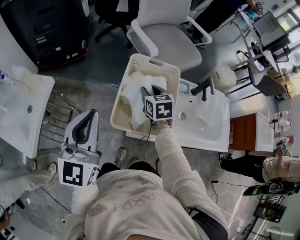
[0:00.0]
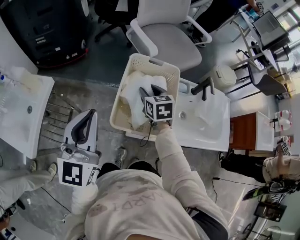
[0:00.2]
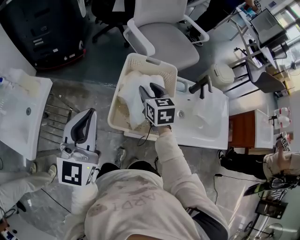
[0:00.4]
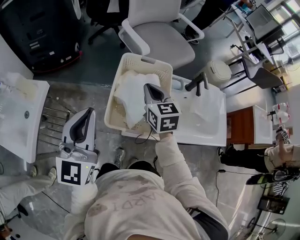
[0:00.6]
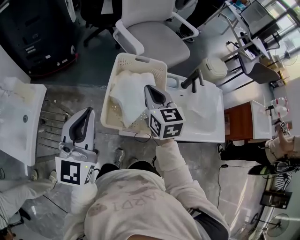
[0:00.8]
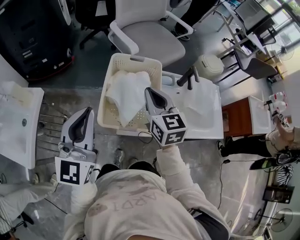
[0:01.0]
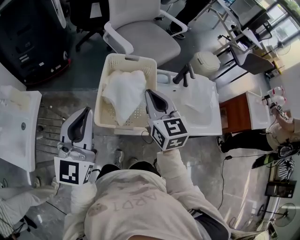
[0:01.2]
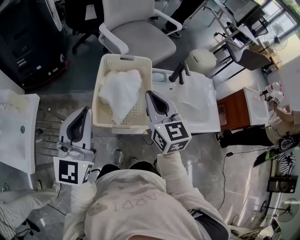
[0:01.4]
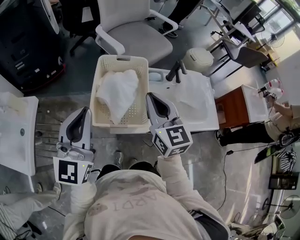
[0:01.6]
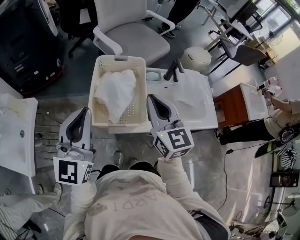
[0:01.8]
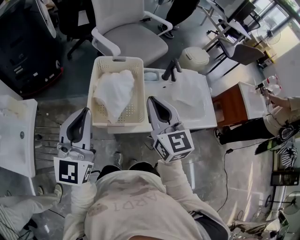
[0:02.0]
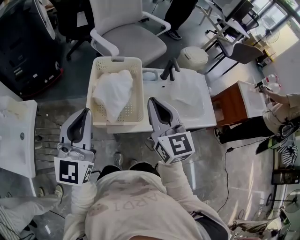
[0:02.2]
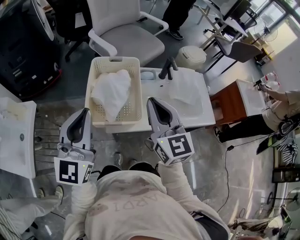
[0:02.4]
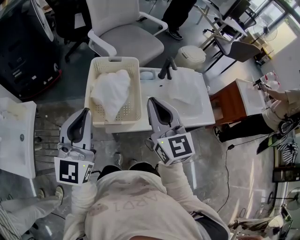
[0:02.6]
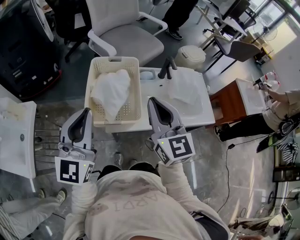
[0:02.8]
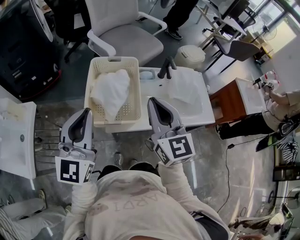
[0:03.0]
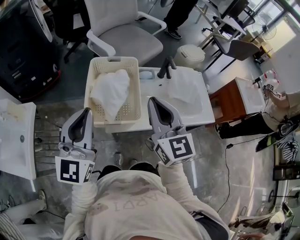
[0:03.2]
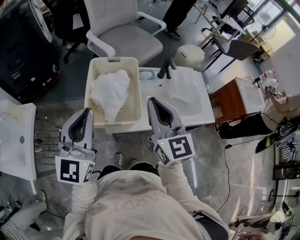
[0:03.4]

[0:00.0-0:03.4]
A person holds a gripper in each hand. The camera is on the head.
0:00.0 to 0:01.6: The left gripper shifts approximately 5 cm to the right. Meanwhile the right gripper goes approximately 25 cm upward, backward and to the right, tilts its fingers some 30 degrees upward, and closes.
0:01.6 to 0:03.4: The right gripper heads backward, covering roughly 5 cm.

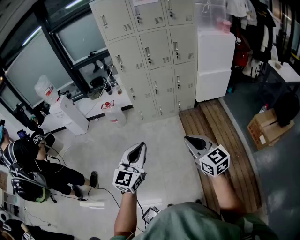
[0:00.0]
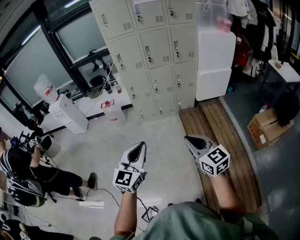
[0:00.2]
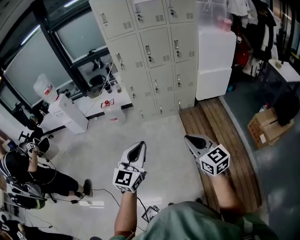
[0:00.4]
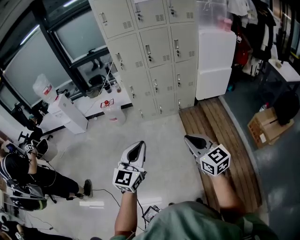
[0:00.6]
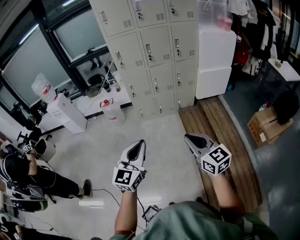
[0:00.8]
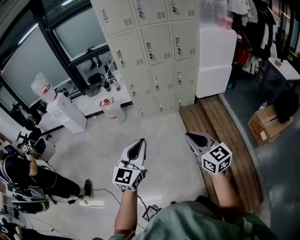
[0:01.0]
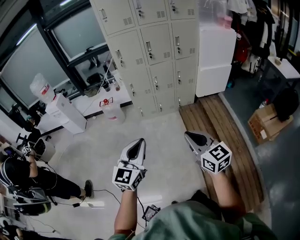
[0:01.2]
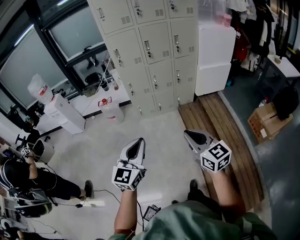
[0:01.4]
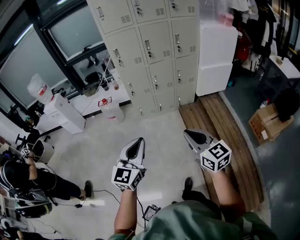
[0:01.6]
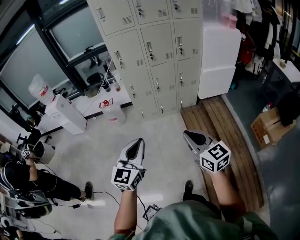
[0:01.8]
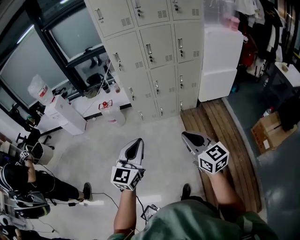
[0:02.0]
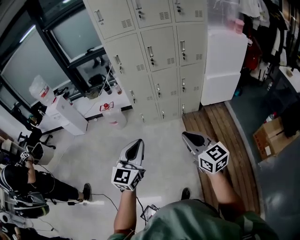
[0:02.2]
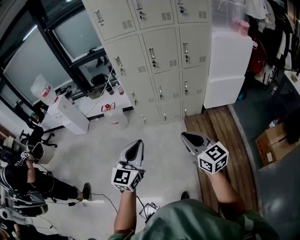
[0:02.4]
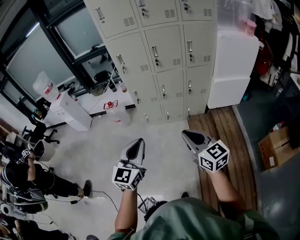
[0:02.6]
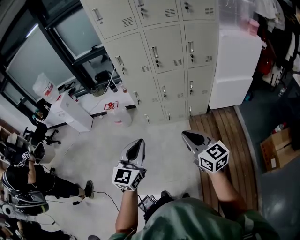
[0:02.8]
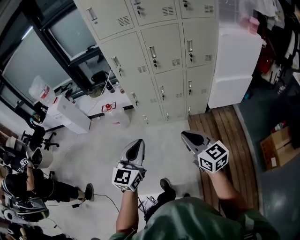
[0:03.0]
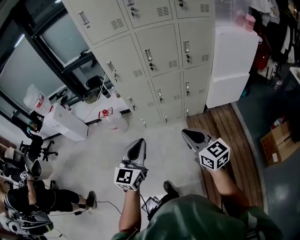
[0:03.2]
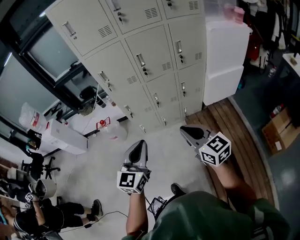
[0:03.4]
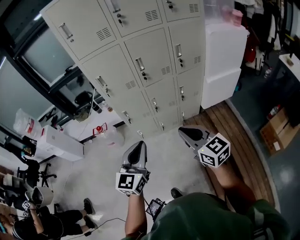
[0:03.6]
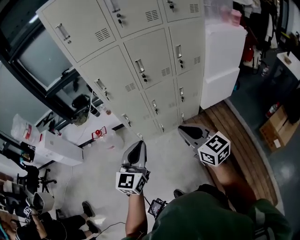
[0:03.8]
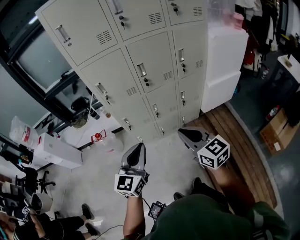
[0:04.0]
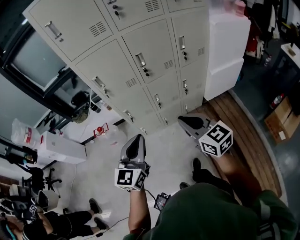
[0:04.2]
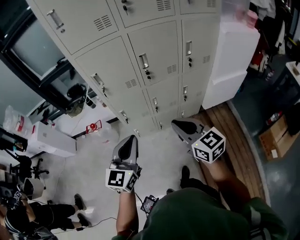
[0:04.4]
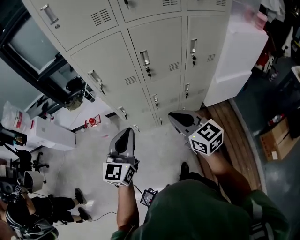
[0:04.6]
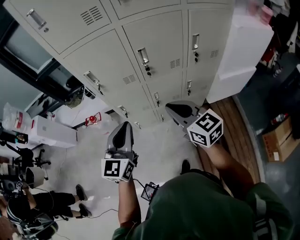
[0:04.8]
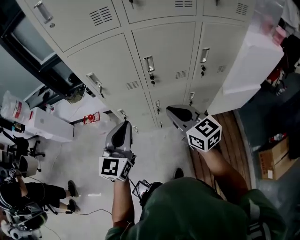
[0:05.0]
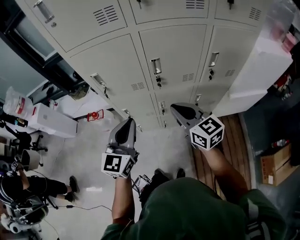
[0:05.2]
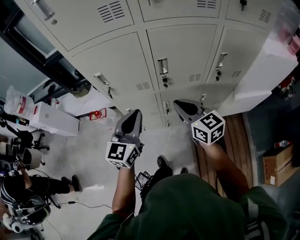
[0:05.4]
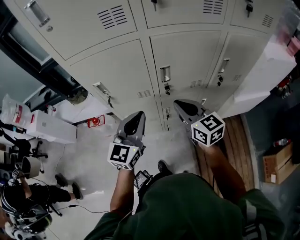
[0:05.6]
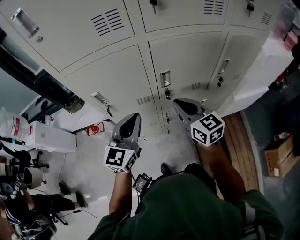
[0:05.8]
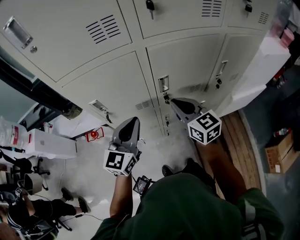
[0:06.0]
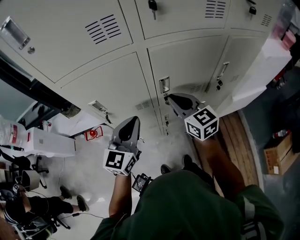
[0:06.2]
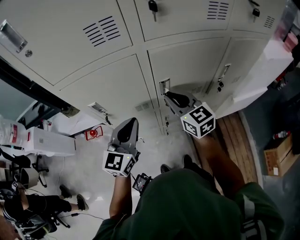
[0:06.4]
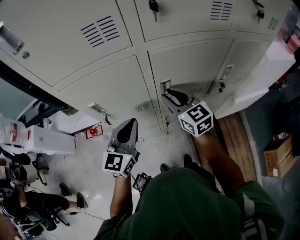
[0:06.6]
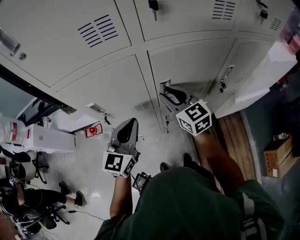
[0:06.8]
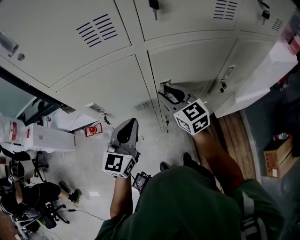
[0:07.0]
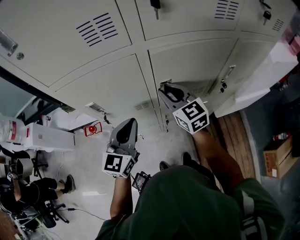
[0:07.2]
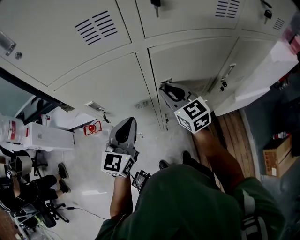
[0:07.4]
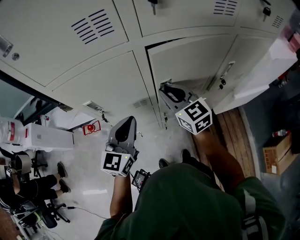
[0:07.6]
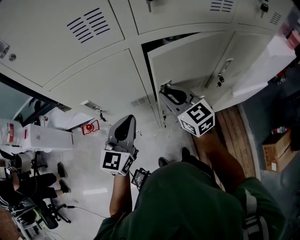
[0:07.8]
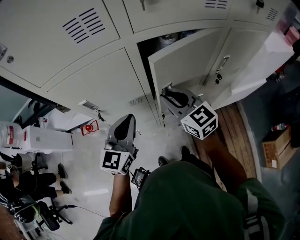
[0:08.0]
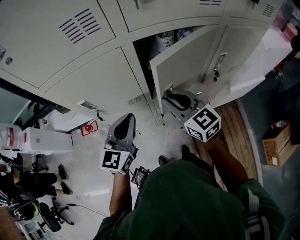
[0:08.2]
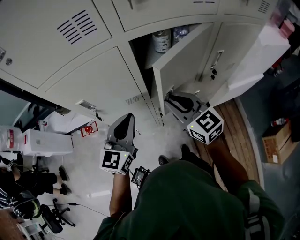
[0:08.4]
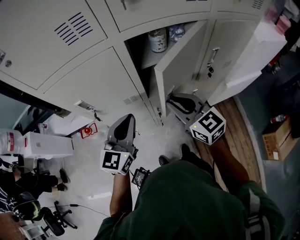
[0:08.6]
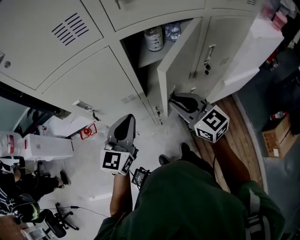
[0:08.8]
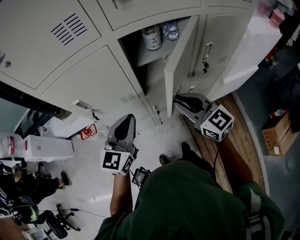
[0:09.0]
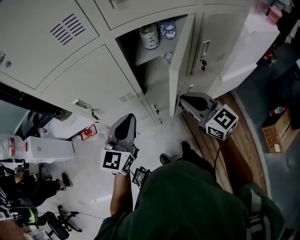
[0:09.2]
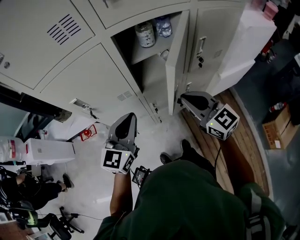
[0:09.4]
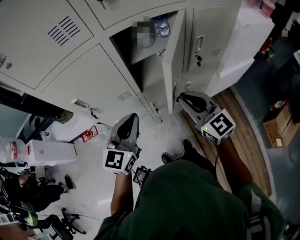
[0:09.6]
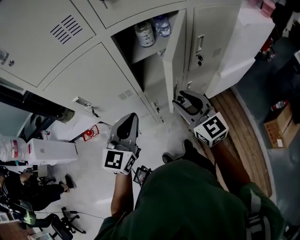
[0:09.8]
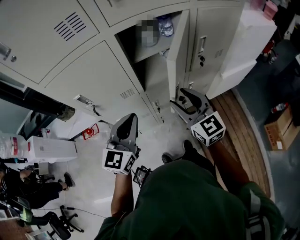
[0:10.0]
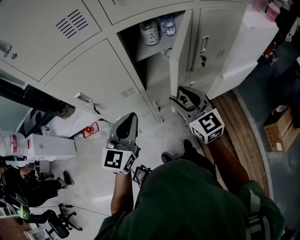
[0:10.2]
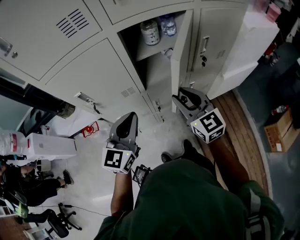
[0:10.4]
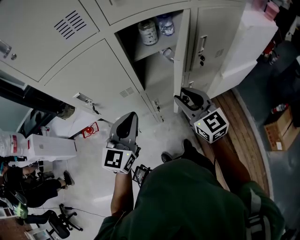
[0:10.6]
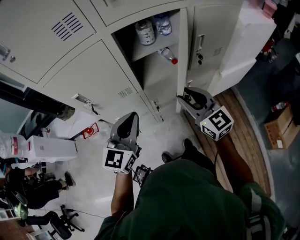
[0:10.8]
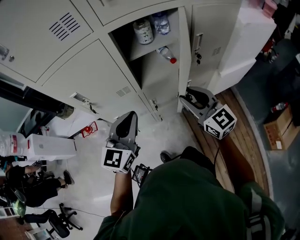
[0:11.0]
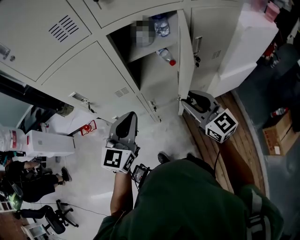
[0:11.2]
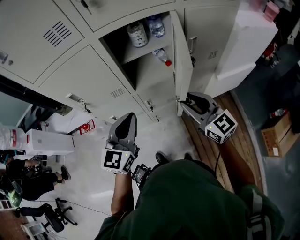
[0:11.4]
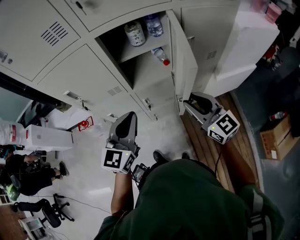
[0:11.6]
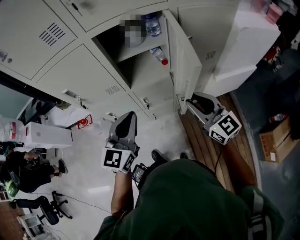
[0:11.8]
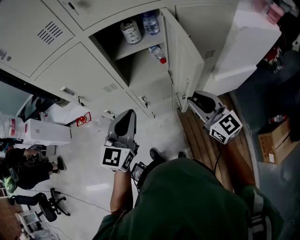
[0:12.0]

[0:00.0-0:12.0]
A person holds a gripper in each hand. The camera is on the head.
0:00.0 to 0:01.6: Both grippers move forward, about 5 cm.
0:01.6 to 0:03.0: Both grippers travel together forward, some 20 cm.
0:03.0 to 0:04.4: The two grippers go about 25 cm forward.
0:04.4 to 0:06.0: Both grippers move forward, about 30 cm.
0:06.0 to 0:07.6: The right gripper heads forward, covering about 5 cm.
0:07.6 to 0:09.0: The left gripper ends up about 5 cm from where it was; the right gripper shifts approximately 15 cm backward and to the right.
0:09.0 to 0:10.4: There are only small adjustments of the grippers.
0:10.4 to 0:12.0: Both grippers move to the right, approximately 15 cm.

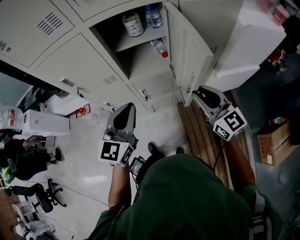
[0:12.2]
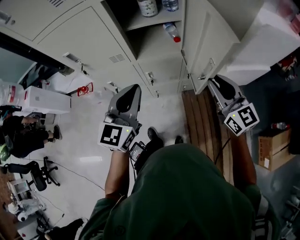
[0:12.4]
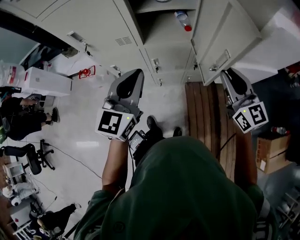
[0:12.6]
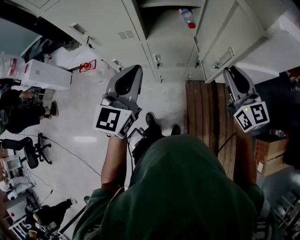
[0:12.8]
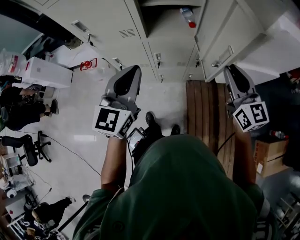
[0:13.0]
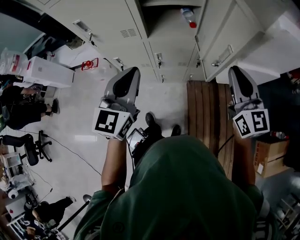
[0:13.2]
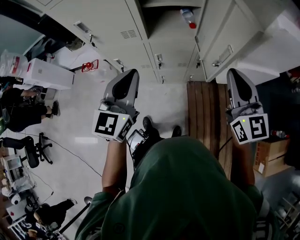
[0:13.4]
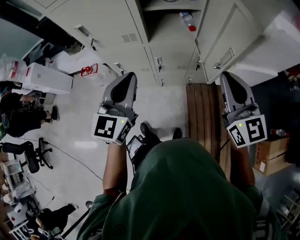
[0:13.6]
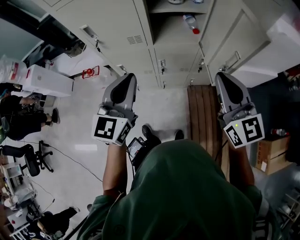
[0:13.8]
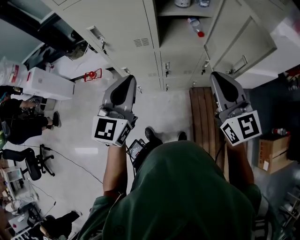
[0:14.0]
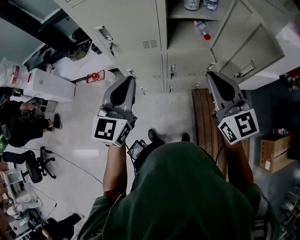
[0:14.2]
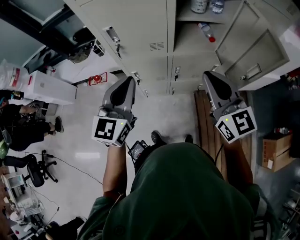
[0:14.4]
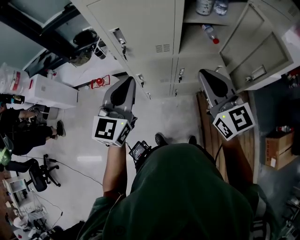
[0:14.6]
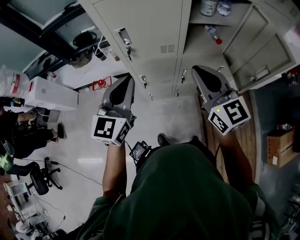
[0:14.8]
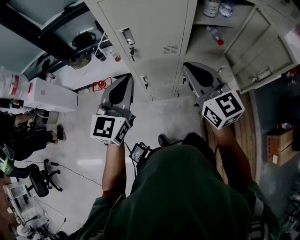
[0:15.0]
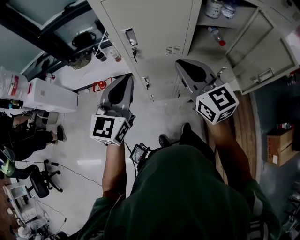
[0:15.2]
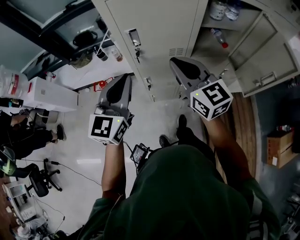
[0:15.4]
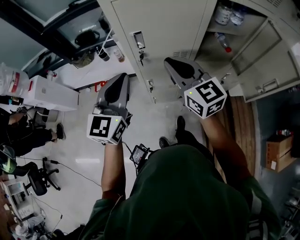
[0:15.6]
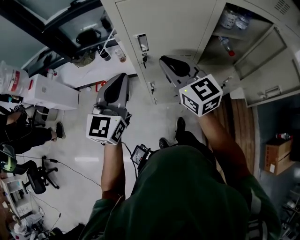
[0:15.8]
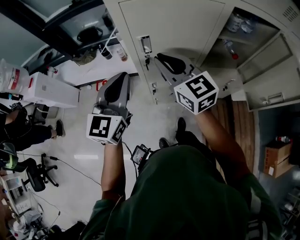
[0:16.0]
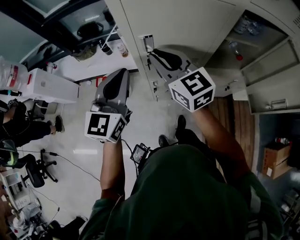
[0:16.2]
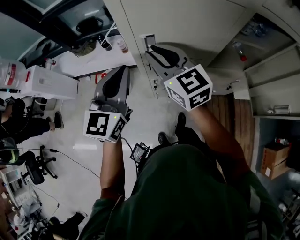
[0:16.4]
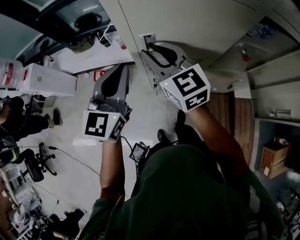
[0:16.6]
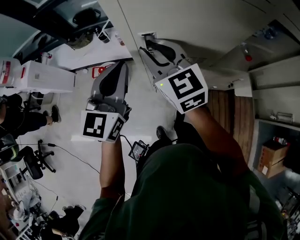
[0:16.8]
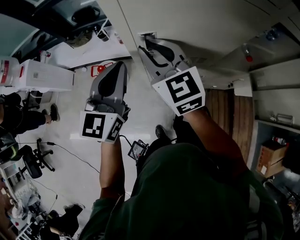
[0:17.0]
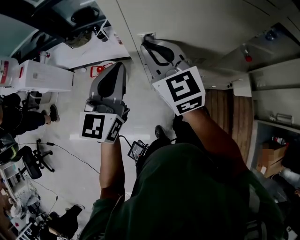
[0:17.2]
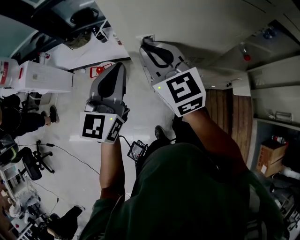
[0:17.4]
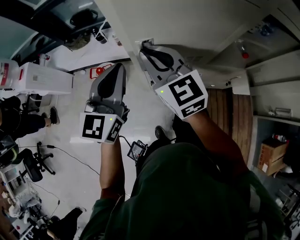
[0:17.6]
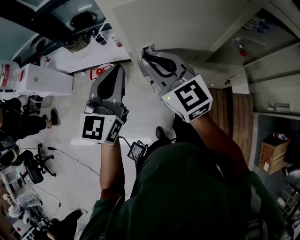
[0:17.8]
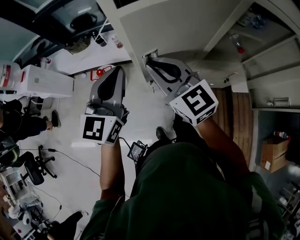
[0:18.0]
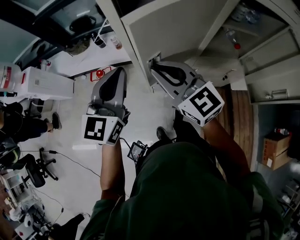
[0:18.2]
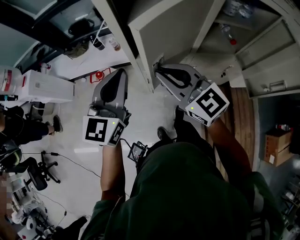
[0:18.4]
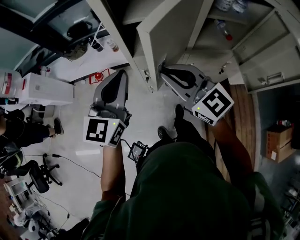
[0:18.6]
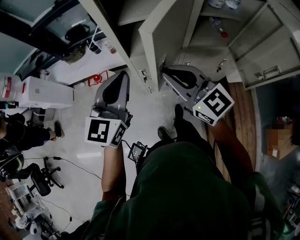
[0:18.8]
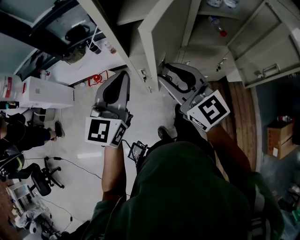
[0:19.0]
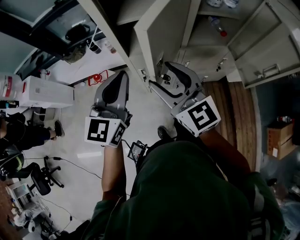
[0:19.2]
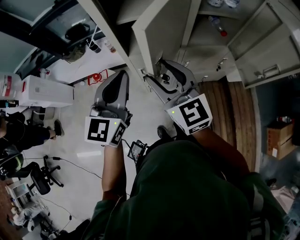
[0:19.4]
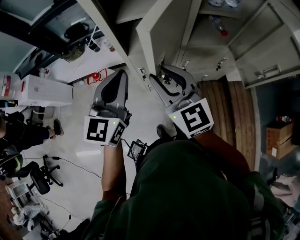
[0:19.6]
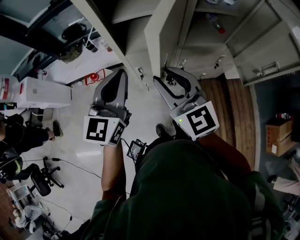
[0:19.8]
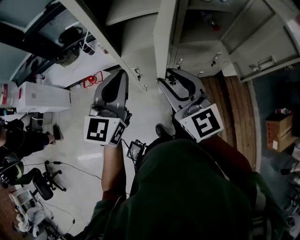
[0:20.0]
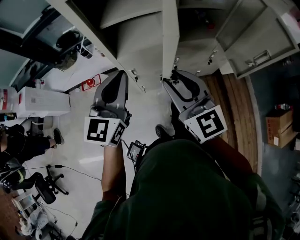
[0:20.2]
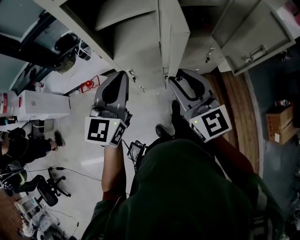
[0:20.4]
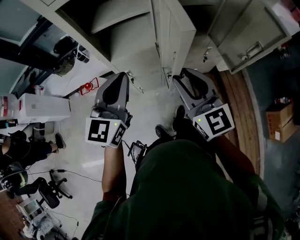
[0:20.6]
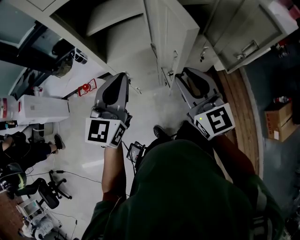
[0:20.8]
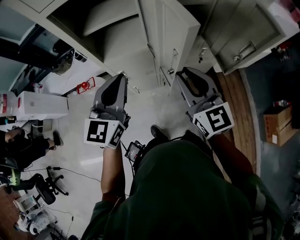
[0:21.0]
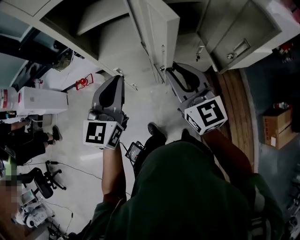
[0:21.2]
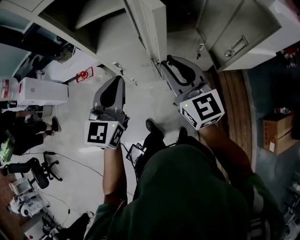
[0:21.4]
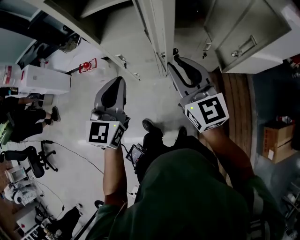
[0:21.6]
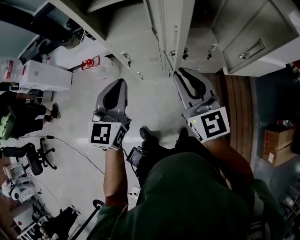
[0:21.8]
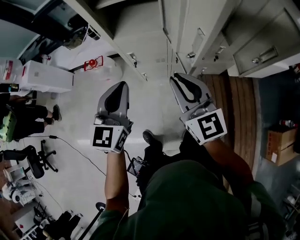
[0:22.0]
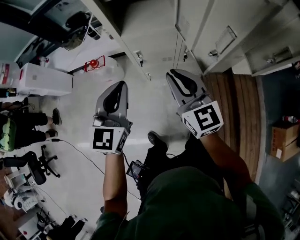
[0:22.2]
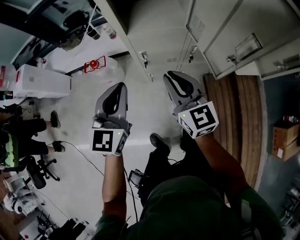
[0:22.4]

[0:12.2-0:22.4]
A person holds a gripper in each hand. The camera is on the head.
0:12.2 to 0:13.6: The left gripper goes about 5 cm to the left. The right gripper shifts roughly 5 cm upward.
0:13.6 to 0:15.2: Both grippers travel together to the left, some 30 cm.
0:15.2 to 0:16.6: The left gripper shifts approximately 10 cm forward; the right gripper heads forward and to the left, covering about 20 cm.
0:16.6 to 0:18.0: The right gripper moves backward, about 10 cm.
0:18.0 to 0:19.4: The left gripper travels backward by approximately 10 cm. Meanwhile the right gripper travels backward and to the right by about 10 cm, and opens.
0:19.4 to 0:21.0: The left gripper travels to the right by approximately 10 cm. The right gripper shifts about 20 cm to the right, and closes up.
0:21.0 to 0:22.4: Both grippers move to the left and downward, approximately 20 cm.
